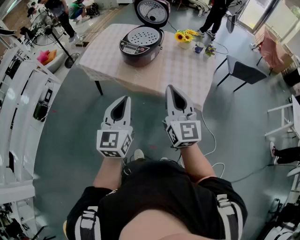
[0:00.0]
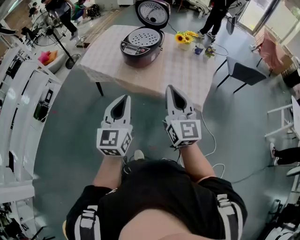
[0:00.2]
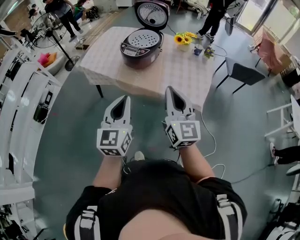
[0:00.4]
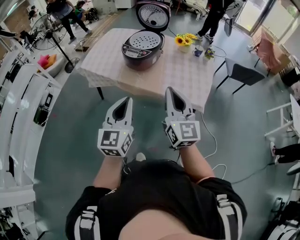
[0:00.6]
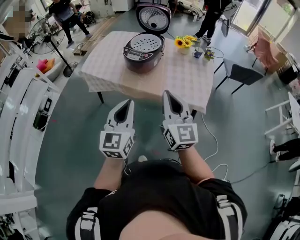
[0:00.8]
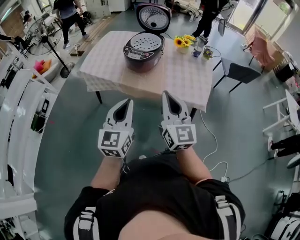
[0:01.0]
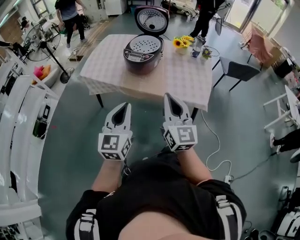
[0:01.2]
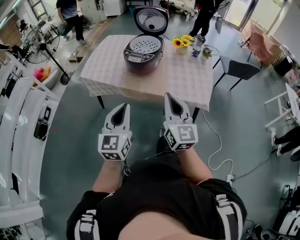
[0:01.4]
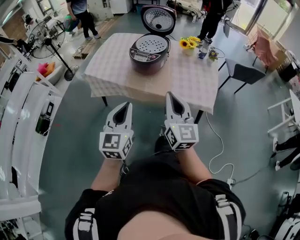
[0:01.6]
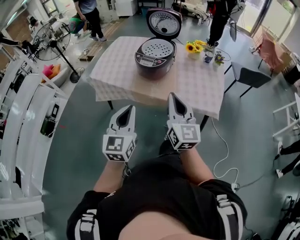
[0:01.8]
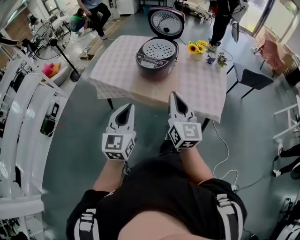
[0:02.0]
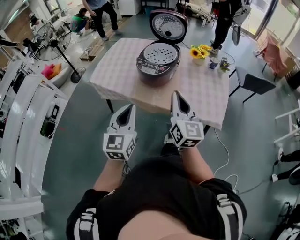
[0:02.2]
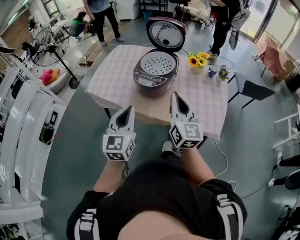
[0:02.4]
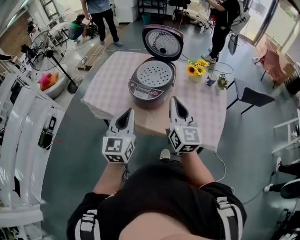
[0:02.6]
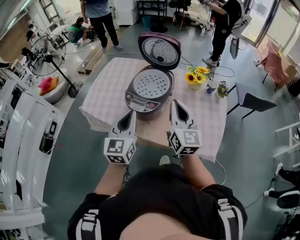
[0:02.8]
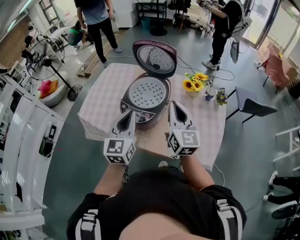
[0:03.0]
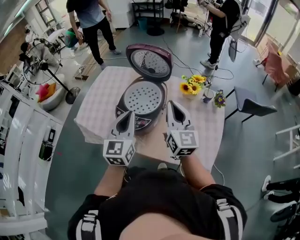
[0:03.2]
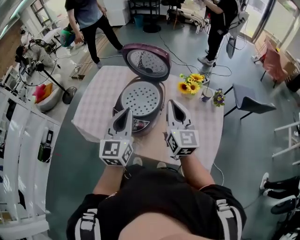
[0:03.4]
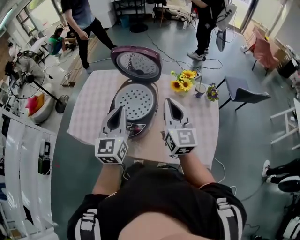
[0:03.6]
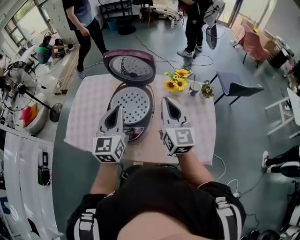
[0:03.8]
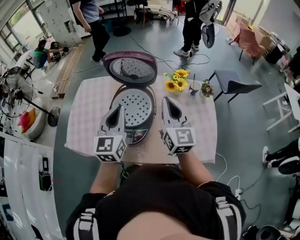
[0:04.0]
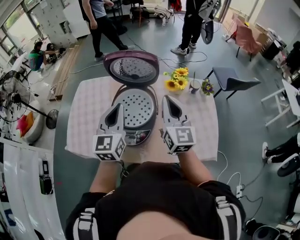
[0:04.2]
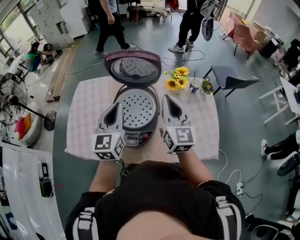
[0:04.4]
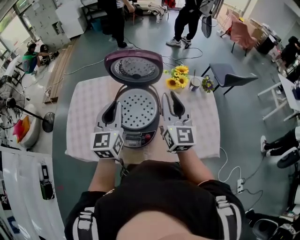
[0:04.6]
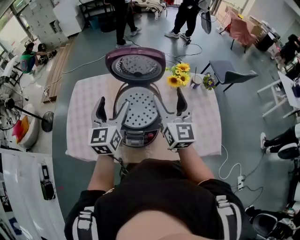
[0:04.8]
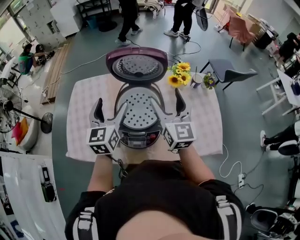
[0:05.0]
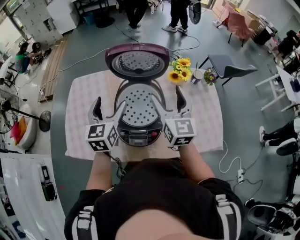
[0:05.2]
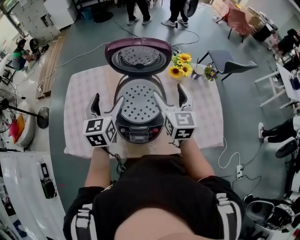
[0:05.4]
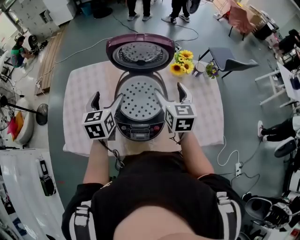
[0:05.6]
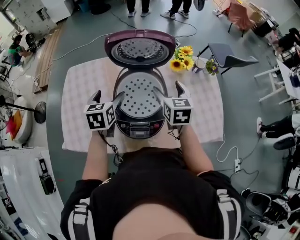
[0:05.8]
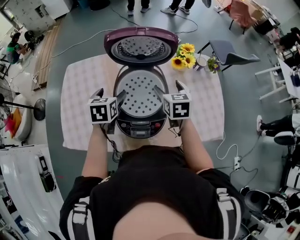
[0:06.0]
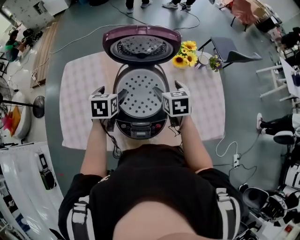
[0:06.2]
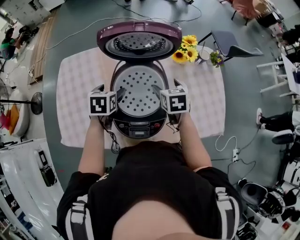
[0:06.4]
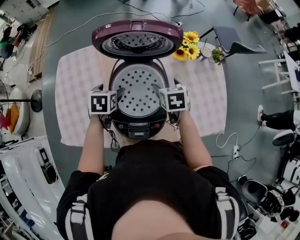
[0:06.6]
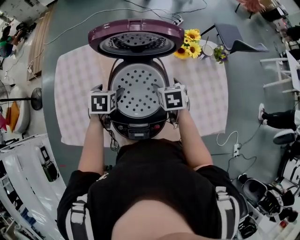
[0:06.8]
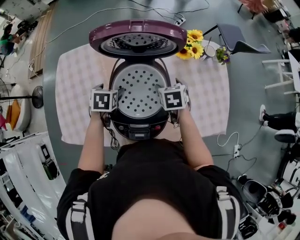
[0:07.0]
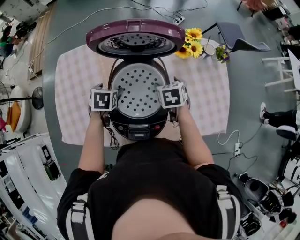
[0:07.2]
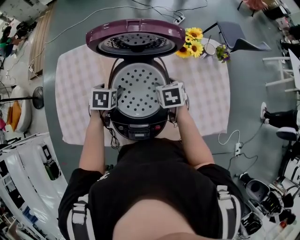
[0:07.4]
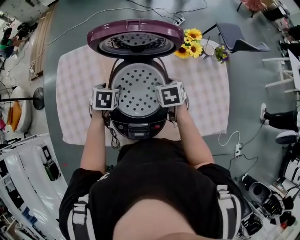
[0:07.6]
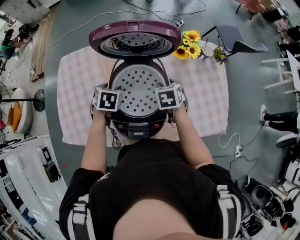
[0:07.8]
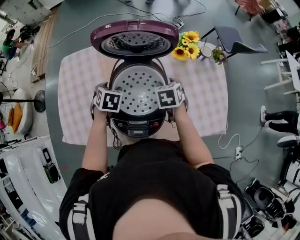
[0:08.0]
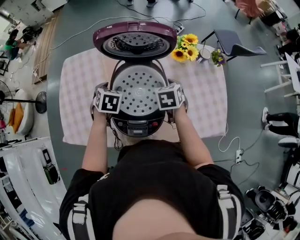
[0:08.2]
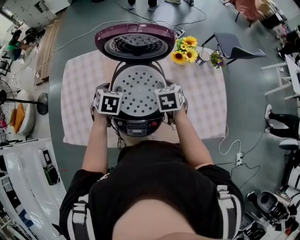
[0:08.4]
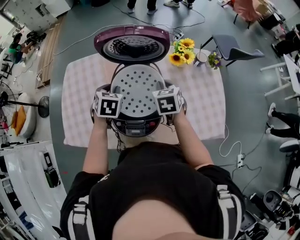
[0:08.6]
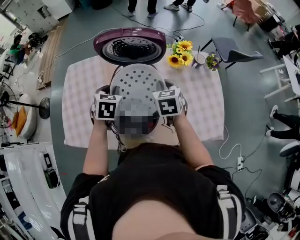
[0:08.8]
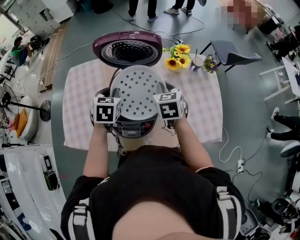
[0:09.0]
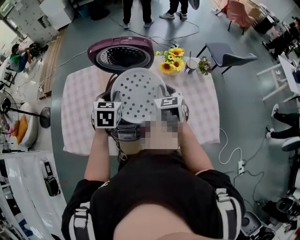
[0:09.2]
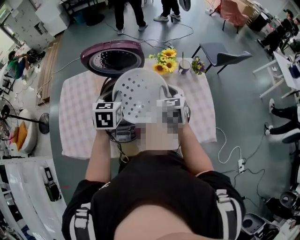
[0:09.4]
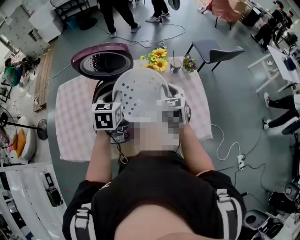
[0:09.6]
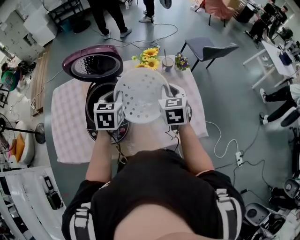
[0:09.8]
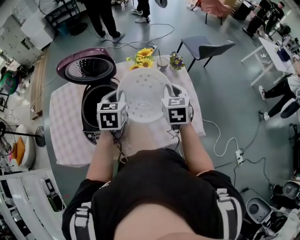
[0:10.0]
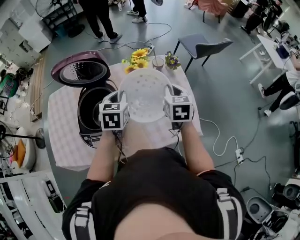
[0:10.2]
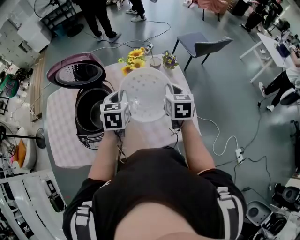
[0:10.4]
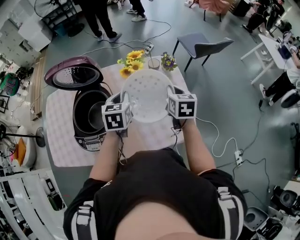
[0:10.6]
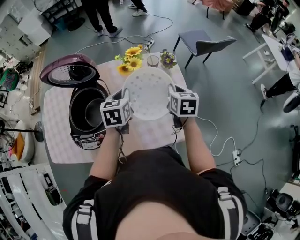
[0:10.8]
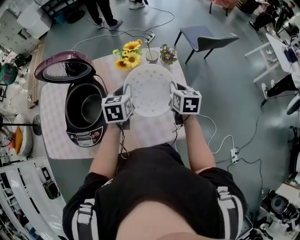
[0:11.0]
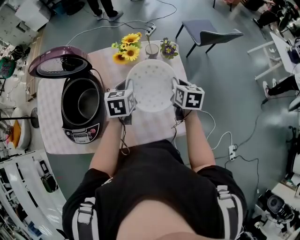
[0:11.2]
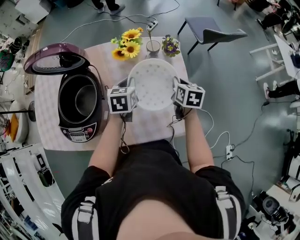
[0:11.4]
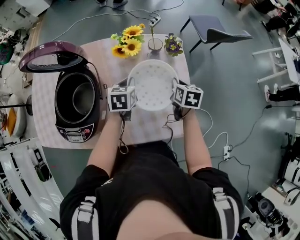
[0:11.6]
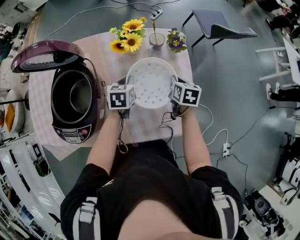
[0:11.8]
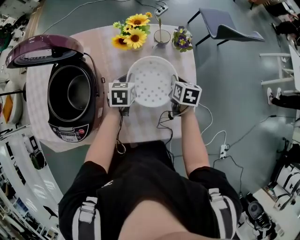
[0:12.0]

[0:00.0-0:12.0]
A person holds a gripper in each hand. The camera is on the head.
0:00.0 to 0:01.6: The two grippers go about 10 cm to the left.
0:01.6 to 0:03.0: The grippers both shift forward by approximately 35 cm.
0:03.0 to 0:04.4: The left gripper shifts about 20 cm forward, while the right gripper goes approximately 10 cm forward.
0:04.4 to 0:06.0: The left gripper is displaced downward, forward and to the left by roughly 20 cm, tips its fingers downward by about 40 degrees, and opens its fingers. The right gripper is displaced downward and forward by approximately 20 cm, angles its fingers downward, by approximately 40 degrees, and opens up.
0:06.0 to 0:07.6: The two grippers go some 10 cm downward. The right gripper swivels roughly 20 degrees, and closes up. Meanwhile the left gripper turns by some 20 degrees.
0:07.6 to 0:09.0: Both grippers travel together upward, approximately 15 cm. The left gripper rotates approximately 20 degrees, and closes, while the right gripper swivels roughly 30 degrees, and closes.
0:09.0 to 0:10.4: The two grippers go some 25 cm to the right.
0:10.4 to 0:12.0: Both grippers travel together downward and forward, roughly 25 cm. The right gripper changes its angle by some 20 degrees. The left gripper changes its angle by roughly 20 degrees.

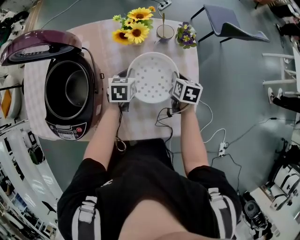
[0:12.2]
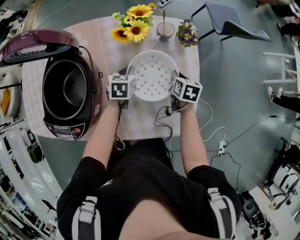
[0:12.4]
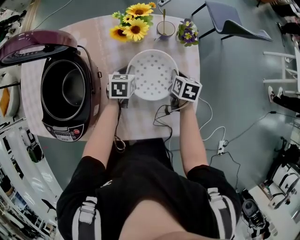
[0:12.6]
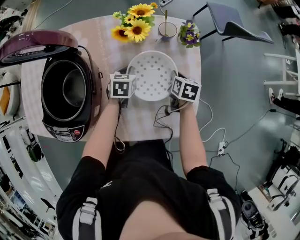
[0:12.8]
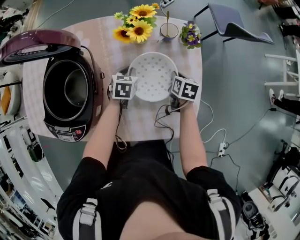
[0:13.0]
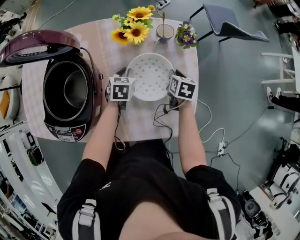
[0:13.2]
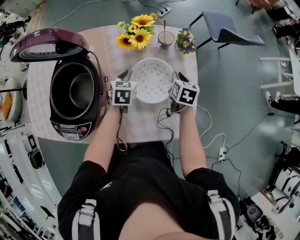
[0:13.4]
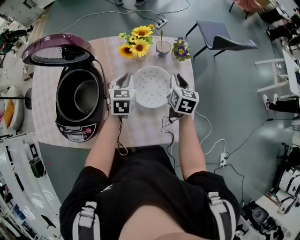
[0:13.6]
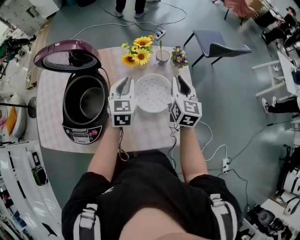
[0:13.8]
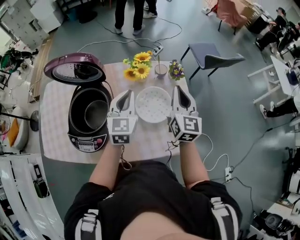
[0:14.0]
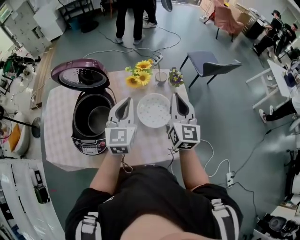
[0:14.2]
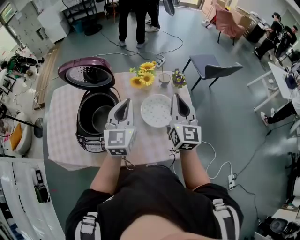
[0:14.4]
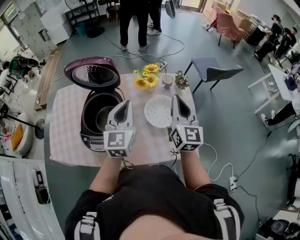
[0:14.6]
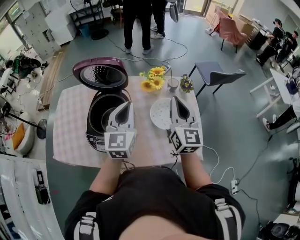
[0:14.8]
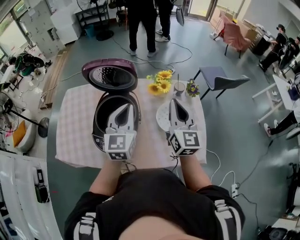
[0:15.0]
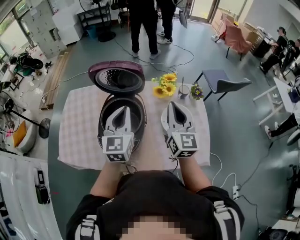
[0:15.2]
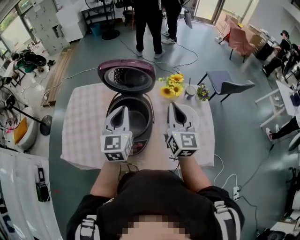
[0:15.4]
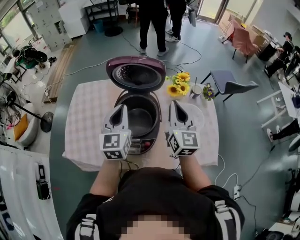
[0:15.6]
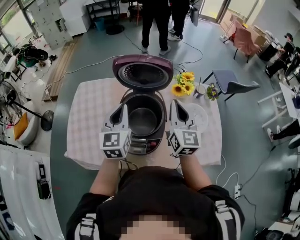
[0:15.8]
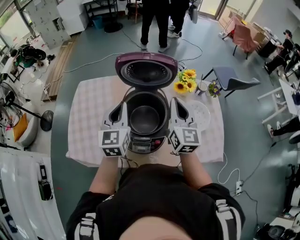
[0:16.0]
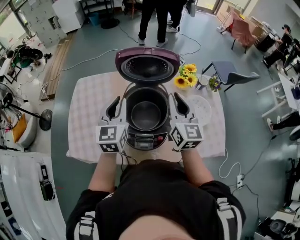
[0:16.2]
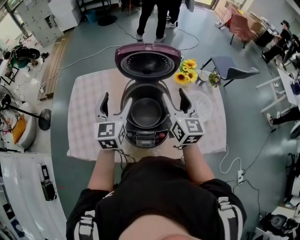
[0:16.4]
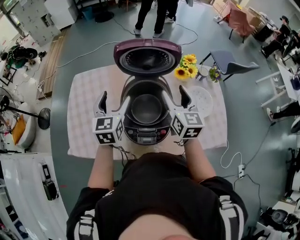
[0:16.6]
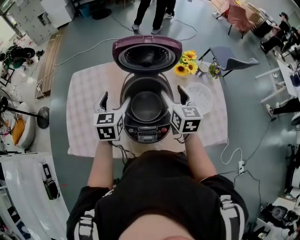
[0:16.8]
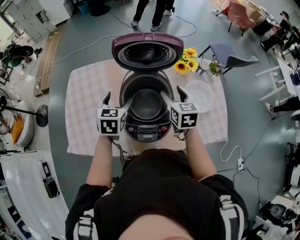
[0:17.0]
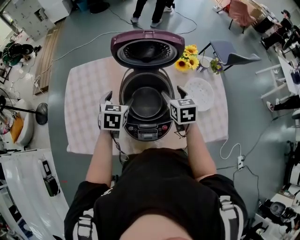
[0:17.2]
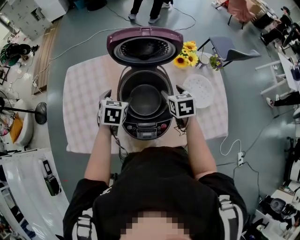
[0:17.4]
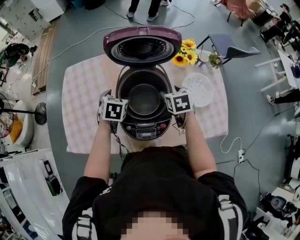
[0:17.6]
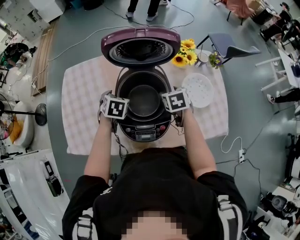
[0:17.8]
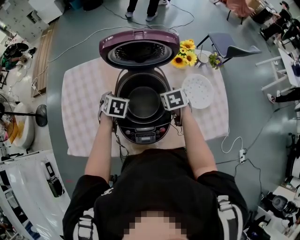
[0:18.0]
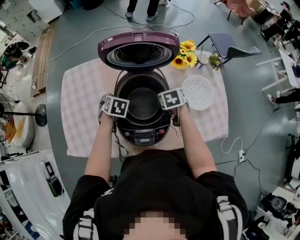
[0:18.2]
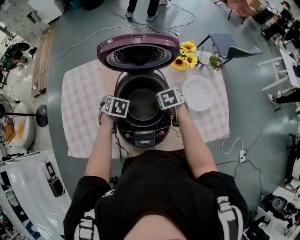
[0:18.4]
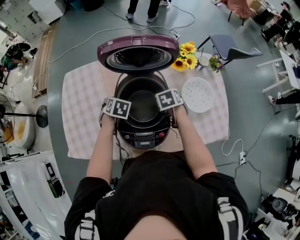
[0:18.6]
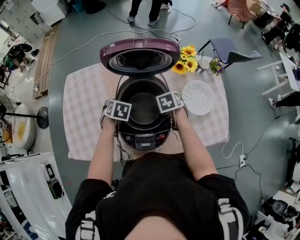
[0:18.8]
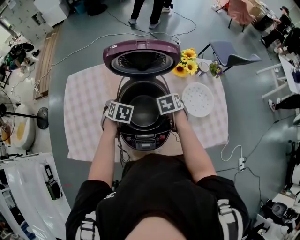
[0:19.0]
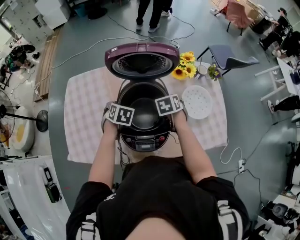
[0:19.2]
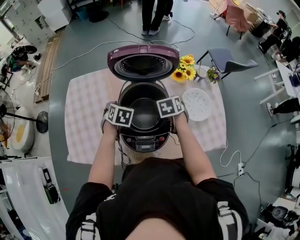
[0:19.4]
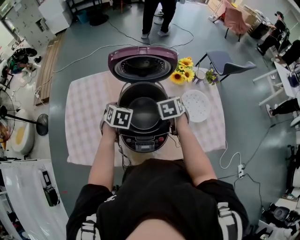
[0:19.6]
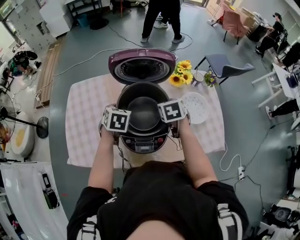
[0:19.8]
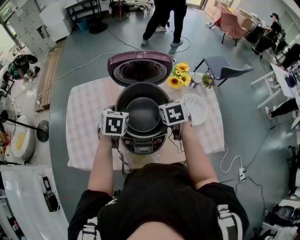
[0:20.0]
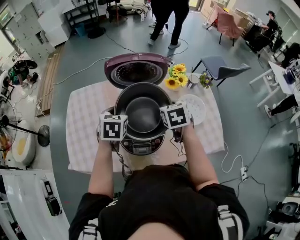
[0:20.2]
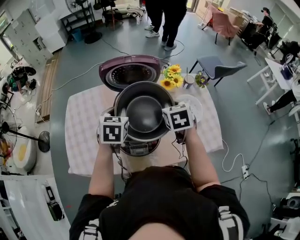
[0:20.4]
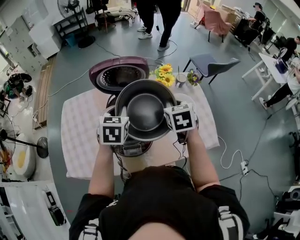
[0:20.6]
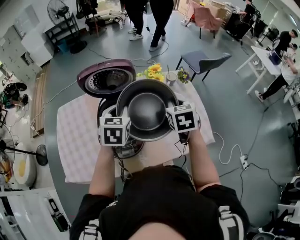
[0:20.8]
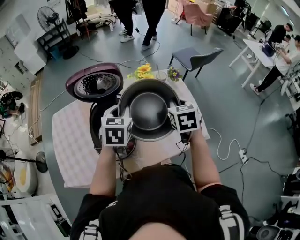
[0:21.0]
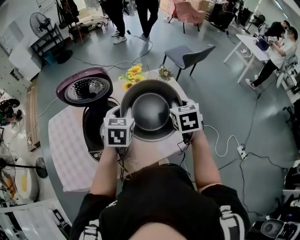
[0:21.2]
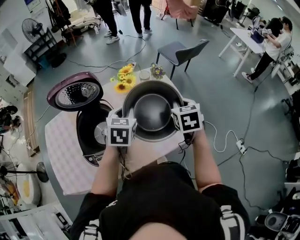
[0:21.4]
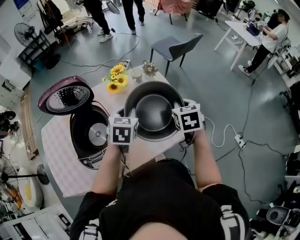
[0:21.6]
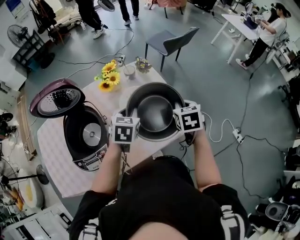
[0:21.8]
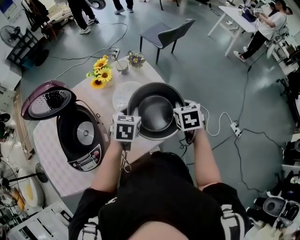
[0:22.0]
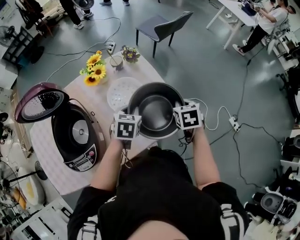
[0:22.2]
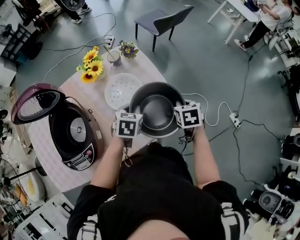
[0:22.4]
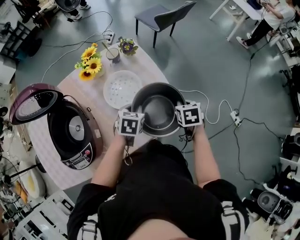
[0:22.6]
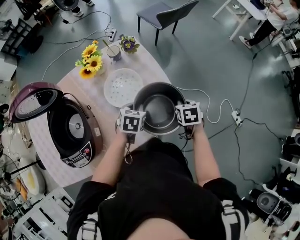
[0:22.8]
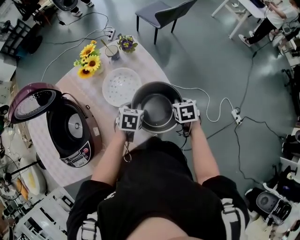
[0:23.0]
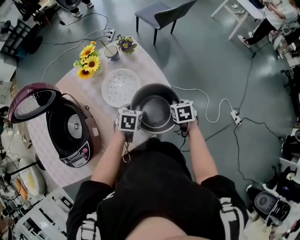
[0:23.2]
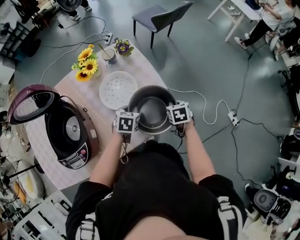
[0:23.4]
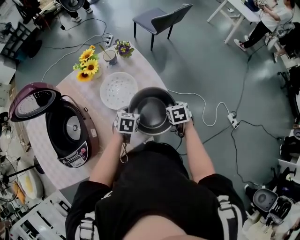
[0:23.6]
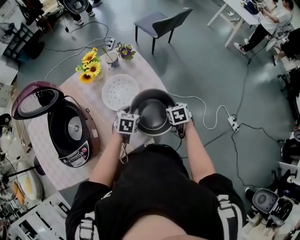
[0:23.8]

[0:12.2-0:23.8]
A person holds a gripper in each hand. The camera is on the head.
0:12.2 to 0:13.6: The grippers both shift upward by roughly 10 cm.
0:13.6 to 0:15.0: The right gripper travels upward, to the left and backward by approximately 35 cm, and tips its fingers upward by roughly 40 degrees, while the left gripper heads upward, backward and to the left, covering approximately 30 cm, and points its fingers some 30 degrees further upward.
0:15.0 to 0:16.6: Both grippers travel together to the left, some 20 cm. The left gripper opens its fingers. The right gripper opens its fingers.
0:16.6 to 0:18.0: The two grippers go approximately 20 cm downward. The left gripper tips its fingers downward by about 40 degrees. The right gripper angles its fingers downward, by some 50 degrees.
0:18.0 to 0:19.4: The left gripper closes its fingers.
0:19.4 to 0:21.0: The right gripper is displaced to the right, upward and backward by some 30 cm, swivels roughly 20 degrees, and closes its fingers, while the left gripper shifts some 30 cm to the right and upward, swivels roughly 30 degrees, and closes.
0:21.0 to 0:22.4: Both grippers move to the right and downward, some 35 cm. The right gripper changes its angle by some 30 degrees, while the left gripper swivels some 30 degrees.
0:22.4 to 0:23.8: The two grippers go roughly 10 cm downward.
